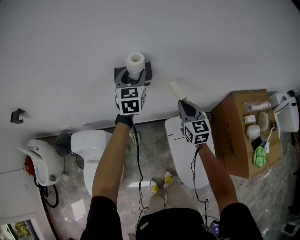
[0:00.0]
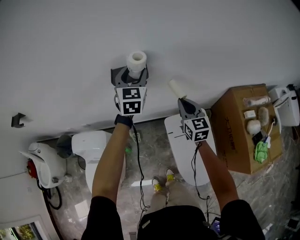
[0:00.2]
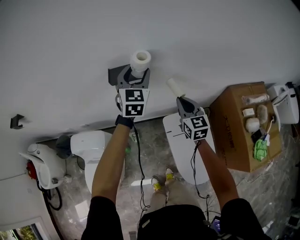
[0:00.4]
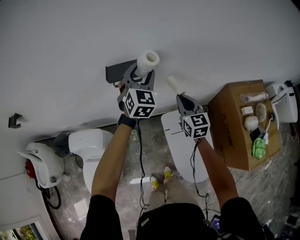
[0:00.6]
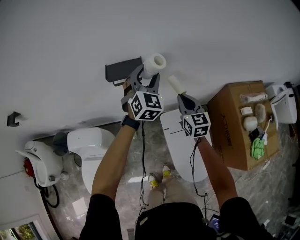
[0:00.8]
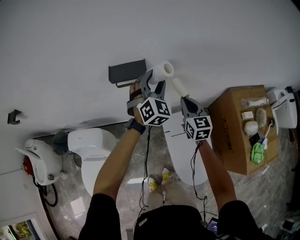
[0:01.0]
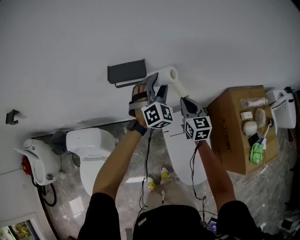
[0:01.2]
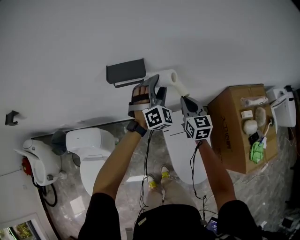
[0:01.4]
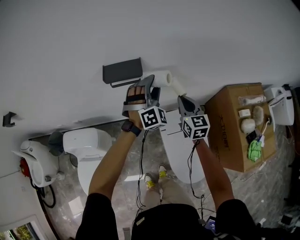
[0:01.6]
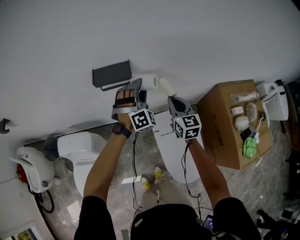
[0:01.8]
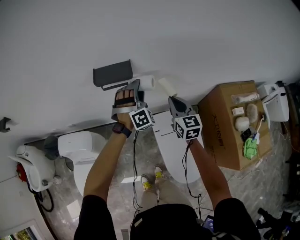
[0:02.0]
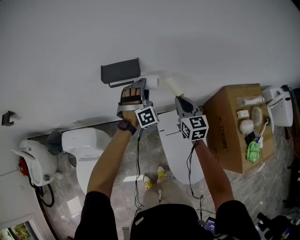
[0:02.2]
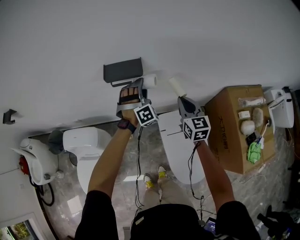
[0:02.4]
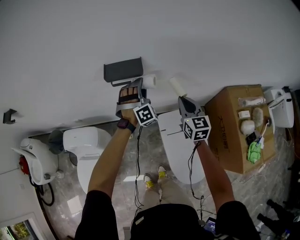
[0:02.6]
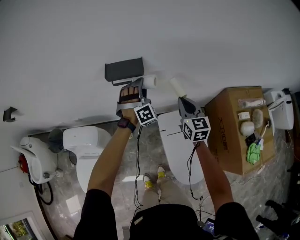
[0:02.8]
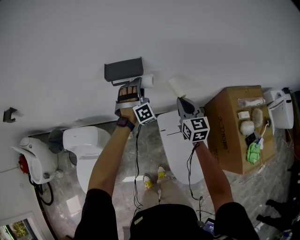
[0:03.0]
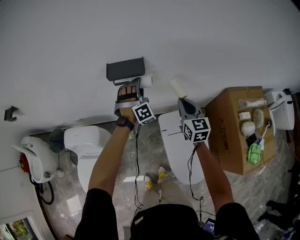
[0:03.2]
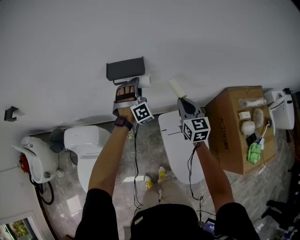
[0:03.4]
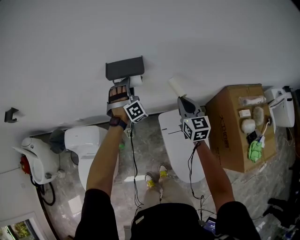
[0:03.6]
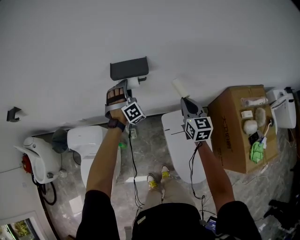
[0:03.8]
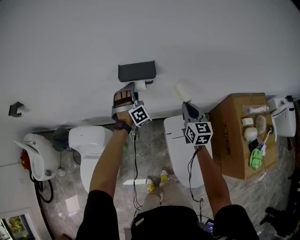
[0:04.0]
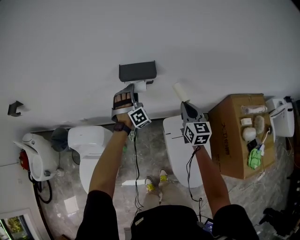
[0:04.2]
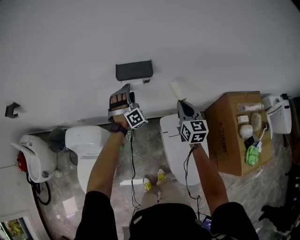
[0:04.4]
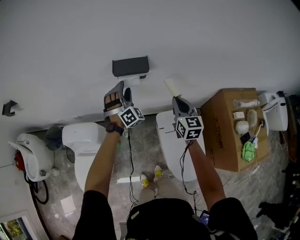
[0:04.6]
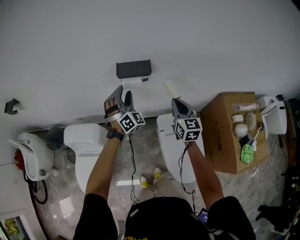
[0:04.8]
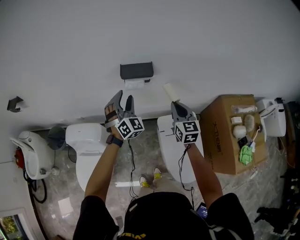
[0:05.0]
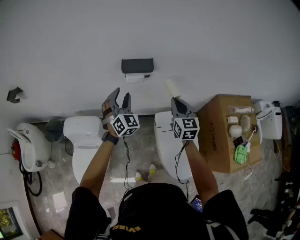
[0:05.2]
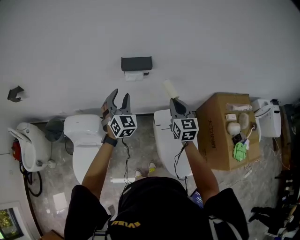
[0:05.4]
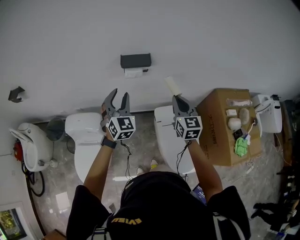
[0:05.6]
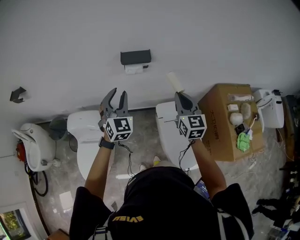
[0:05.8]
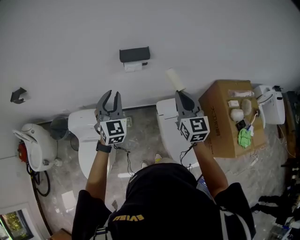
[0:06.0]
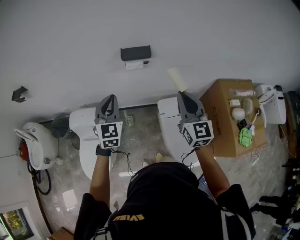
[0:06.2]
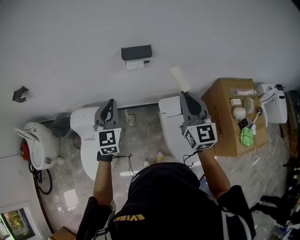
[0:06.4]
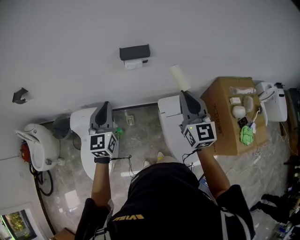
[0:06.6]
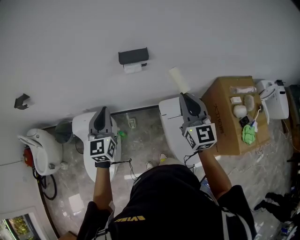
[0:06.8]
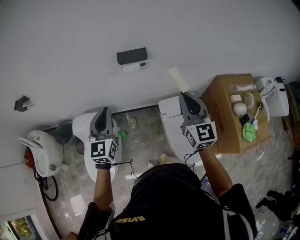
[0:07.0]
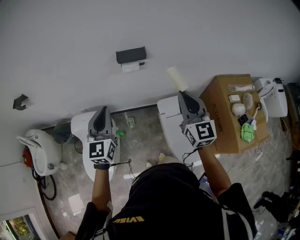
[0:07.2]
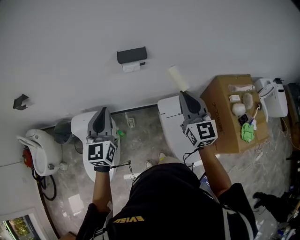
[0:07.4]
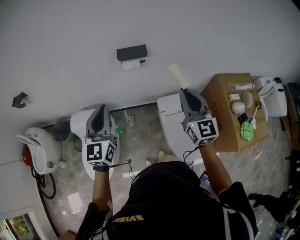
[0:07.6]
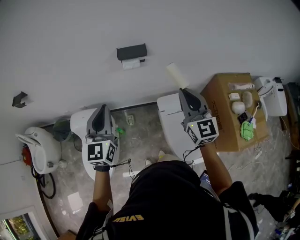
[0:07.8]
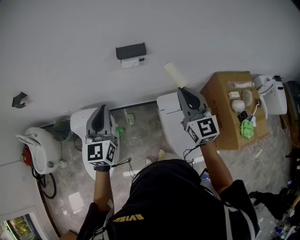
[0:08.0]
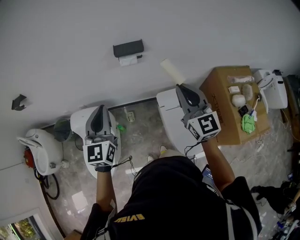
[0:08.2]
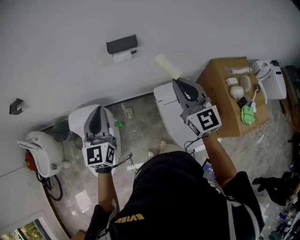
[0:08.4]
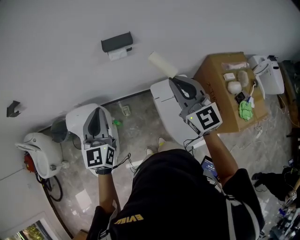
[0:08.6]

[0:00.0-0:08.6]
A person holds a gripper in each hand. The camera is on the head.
0:00.0 to 0:01.4: The left gripper shifts some 15 cm to the right, downward and backward, and rolls clockwise, seen from behind, by approximately 50 degrees.
0:01.4 to 0:02.8: The left gripper moves downward and to the left, some 10 cm, and rotates roughly 20 degrees.
0:02.8 to 0:04.4: The left gripper shifts approximately 10 cm to the left.
0:04.4 to 0:05.8: The right gripper travels upward and backward by about 15 cm. The left gripper shifts roughly 25 cm backward and upward, and rotates around the line of its fingers by some 50 degrees, counterclockwise from behind.
0:05.8 to 0:07.2: The right gripper shifts roughly 10 cm upward and backward, while the left gripper moves backward and to the left, roughly 10 cm, rotates about 30 degrees, and closes.
0:07.2 to 0:08.6: The grippers move only a little.

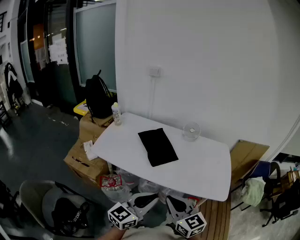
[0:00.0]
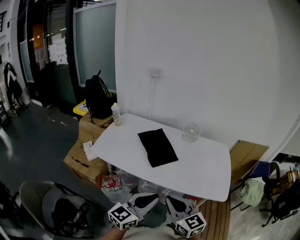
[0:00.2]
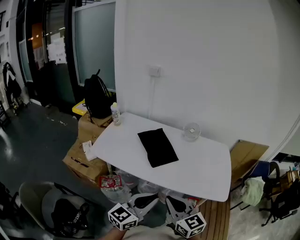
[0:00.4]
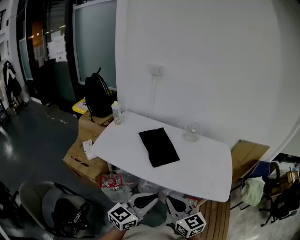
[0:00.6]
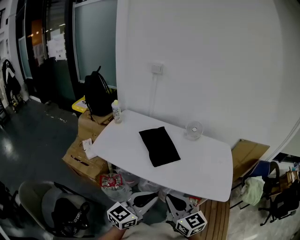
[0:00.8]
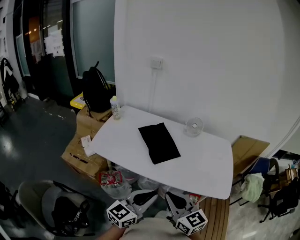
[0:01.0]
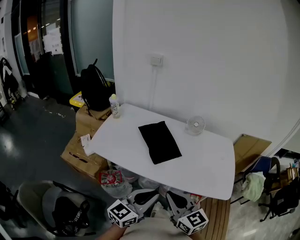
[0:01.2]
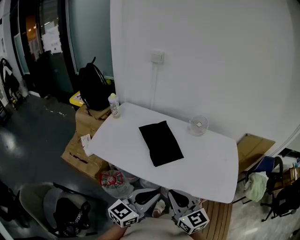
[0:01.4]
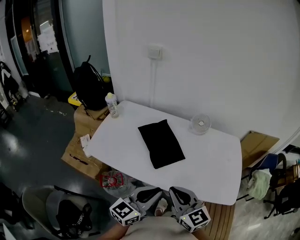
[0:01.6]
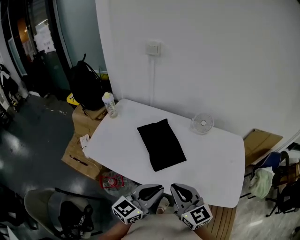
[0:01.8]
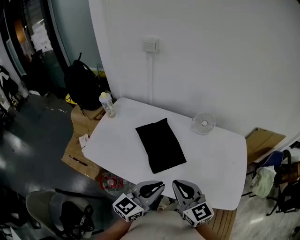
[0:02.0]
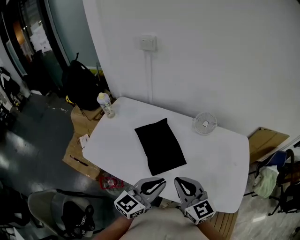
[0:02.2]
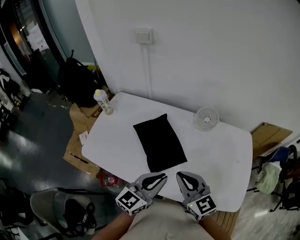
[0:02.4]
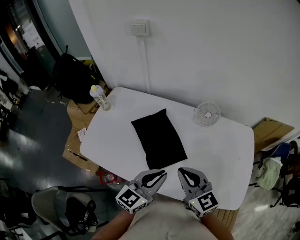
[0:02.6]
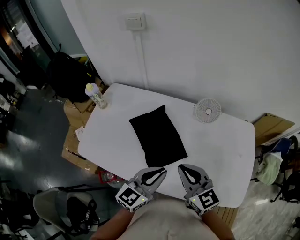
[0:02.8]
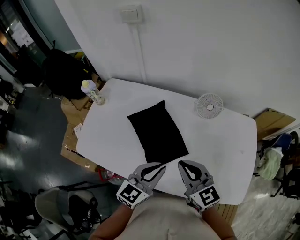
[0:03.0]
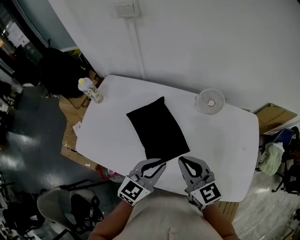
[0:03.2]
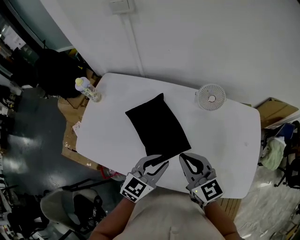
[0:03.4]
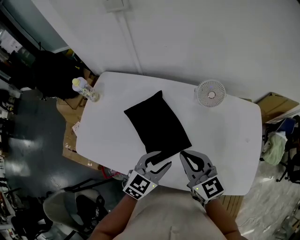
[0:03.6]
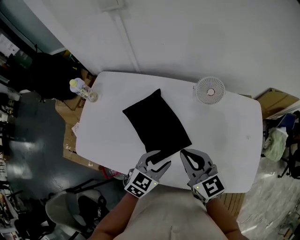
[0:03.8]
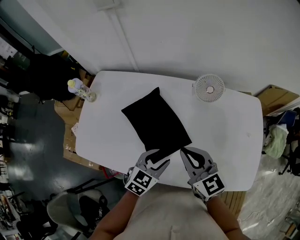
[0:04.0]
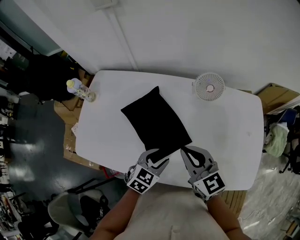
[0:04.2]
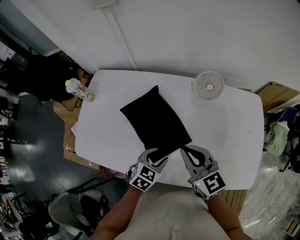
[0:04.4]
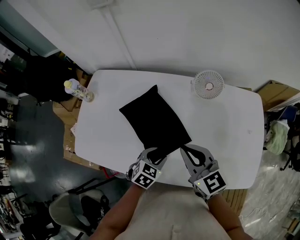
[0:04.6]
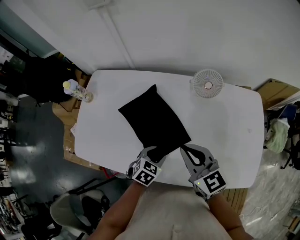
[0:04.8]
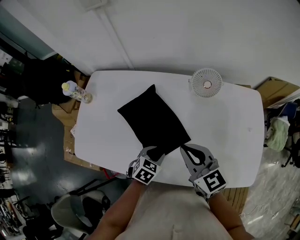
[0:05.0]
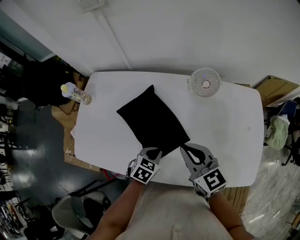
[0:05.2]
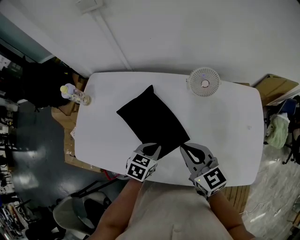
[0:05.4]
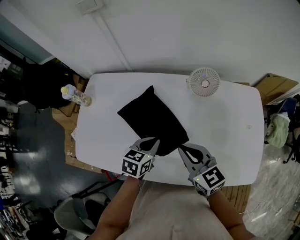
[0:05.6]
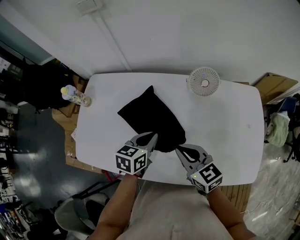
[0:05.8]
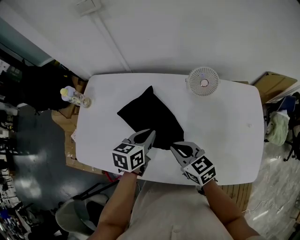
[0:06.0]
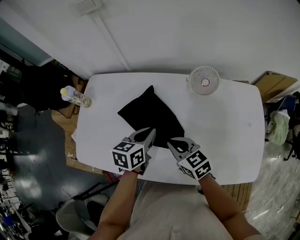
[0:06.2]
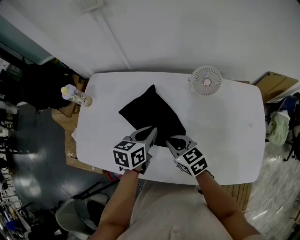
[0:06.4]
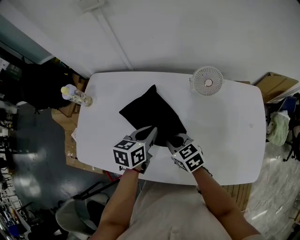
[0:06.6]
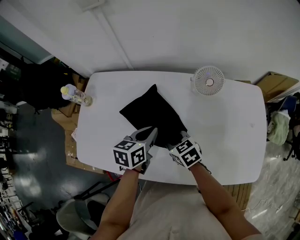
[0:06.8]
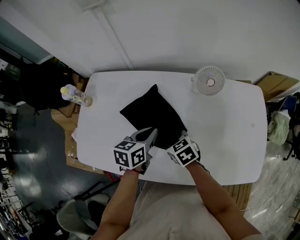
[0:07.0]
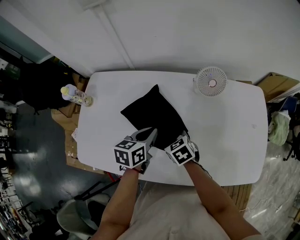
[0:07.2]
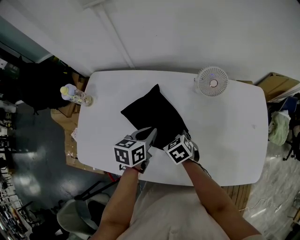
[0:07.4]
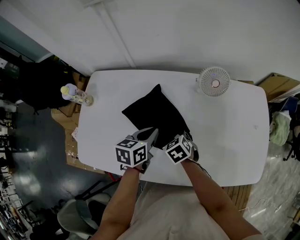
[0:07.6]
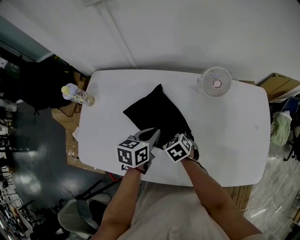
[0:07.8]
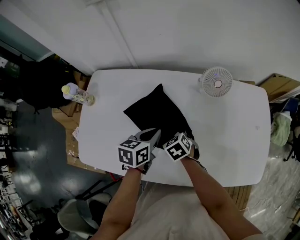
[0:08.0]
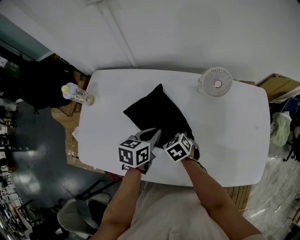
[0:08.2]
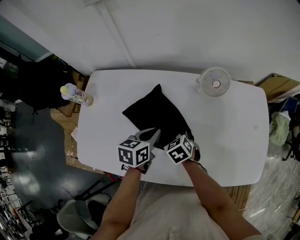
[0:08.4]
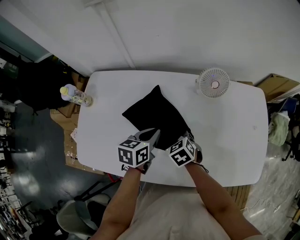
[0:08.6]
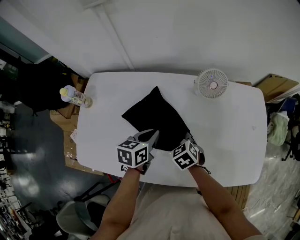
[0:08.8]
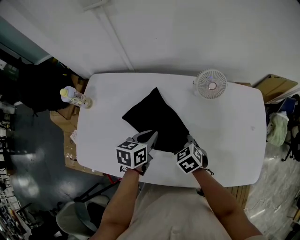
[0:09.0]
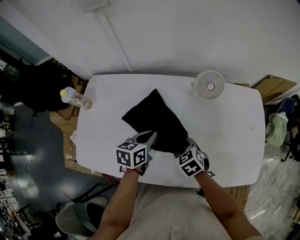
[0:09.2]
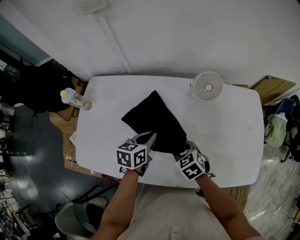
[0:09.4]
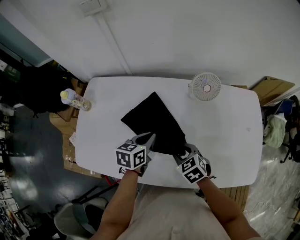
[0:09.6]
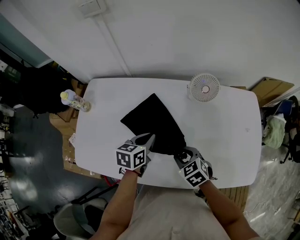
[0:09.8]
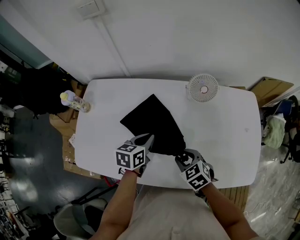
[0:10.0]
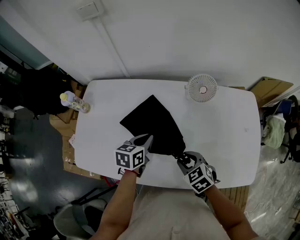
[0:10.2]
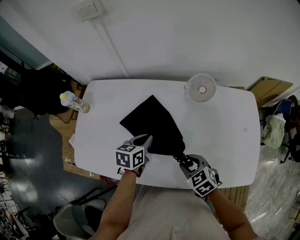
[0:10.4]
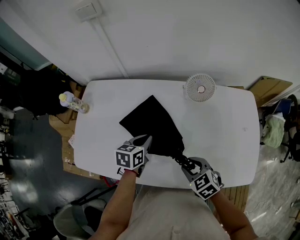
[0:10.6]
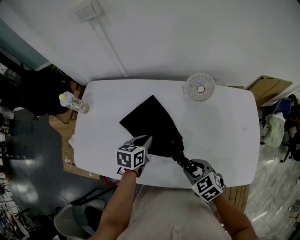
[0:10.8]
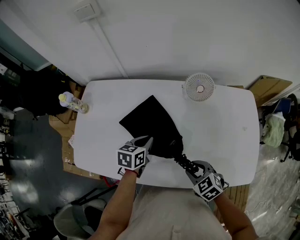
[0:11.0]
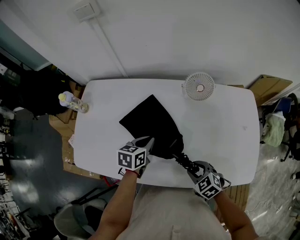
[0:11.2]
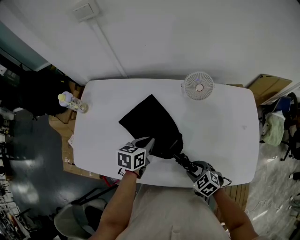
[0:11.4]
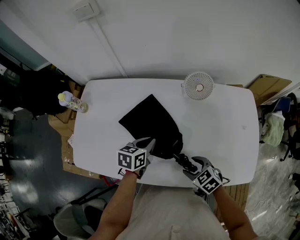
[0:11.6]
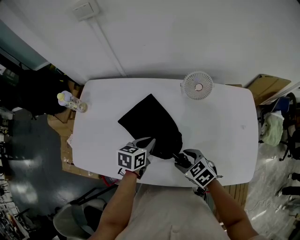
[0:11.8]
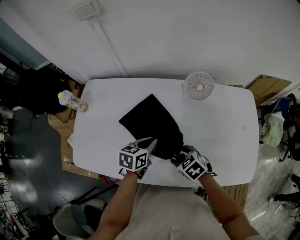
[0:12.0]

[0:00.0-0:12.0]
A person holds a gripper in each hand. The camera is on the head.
0:00.0 to 0:01.6: Both grippers move forward, some 15 cm.
0:01.6 to 0:03.0: Both grippers travel together forward, about 20 cm.
0:03.0 to 0:04.4: The left gripper is displaced downward by about 15 cm, tips its fingers downward by approximately 30 degrees, and opens up. Meanwhile the right gripper changes place by roughly 5 cm.
0:04.4 to 0:06.0: The left gripper moves forward and upward, roughly 15 cm, turns by some 30 degrees, and closes its fingers. The right gripper heads downward, covering about 10 cm.
0:06.0 to 0:07.6: The left gripper shifts by about 5 cm, while the right gripper travels downward and forward by roughly 15 cm, changes its angle by some 30 degrees, and opens up.
0:07.6 to 0:09.0: The right gripper shifts by about 5 cm.
0:09.0 to 0:10.4: The right gripper shifts some 10 cm backward and to the right.
0:10.4 to 0:12.0: The right gripper opens its fingers.

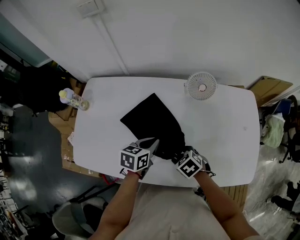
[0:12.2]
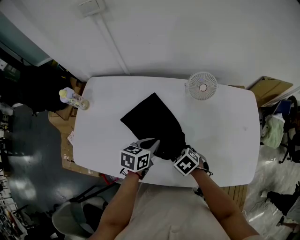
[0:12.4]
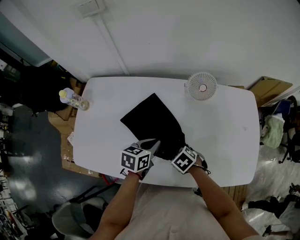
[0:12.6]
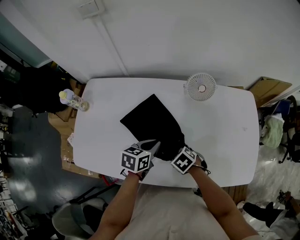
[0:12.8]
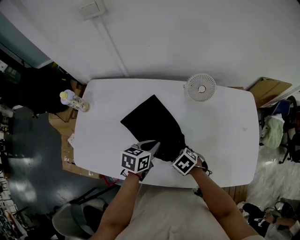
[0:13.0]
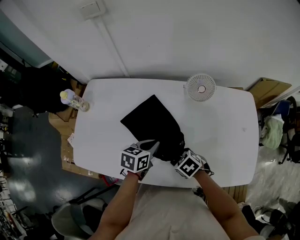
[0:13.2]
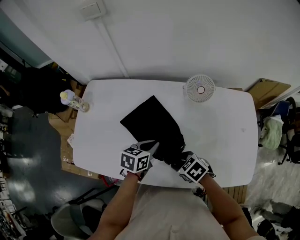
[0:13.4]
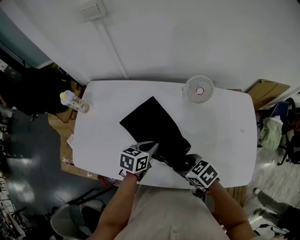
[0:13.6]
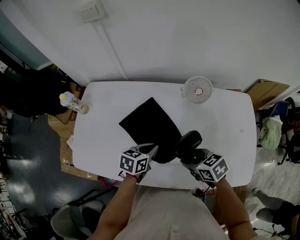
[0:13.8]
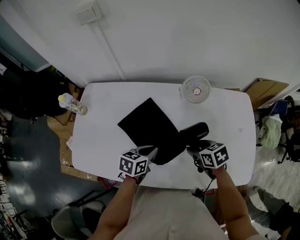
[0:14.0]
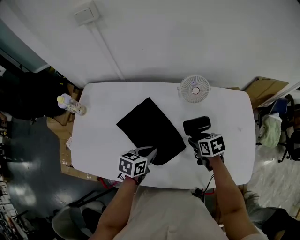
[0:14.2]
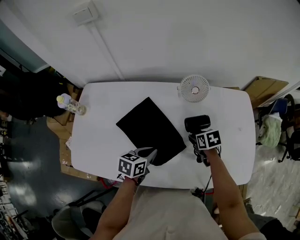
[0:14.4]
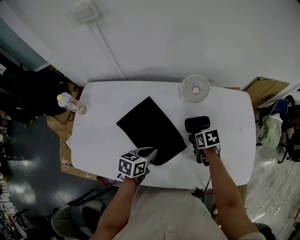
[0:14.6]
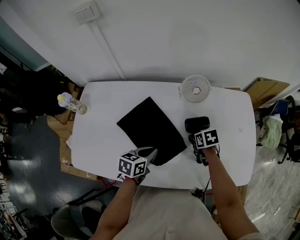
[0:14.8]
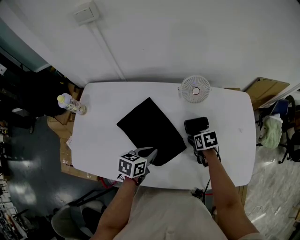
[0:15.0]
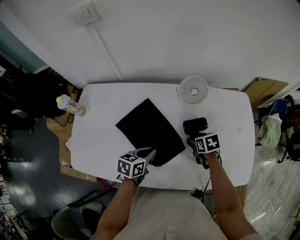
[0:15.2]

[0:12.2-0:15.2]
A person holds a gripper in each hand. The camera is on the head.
0:12.2 to 0:13.8: The right gripper shifts about 10 cm upward, and changes its angle by roughly 20 degrees.
0:13.8 to 0:15.2: The right gripper heads forward, downward and to the right, covering some 15 cm, and turns by roughly 30 degrees.
